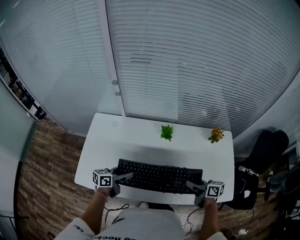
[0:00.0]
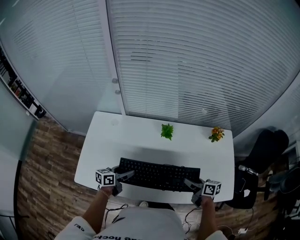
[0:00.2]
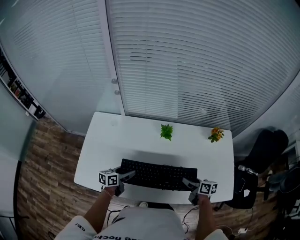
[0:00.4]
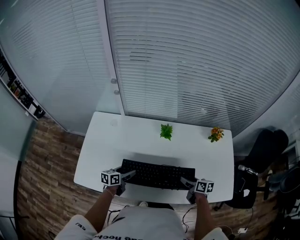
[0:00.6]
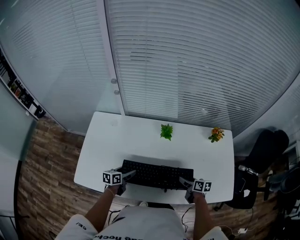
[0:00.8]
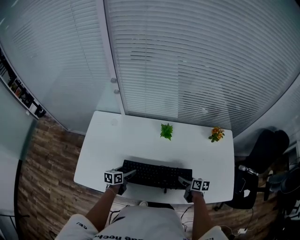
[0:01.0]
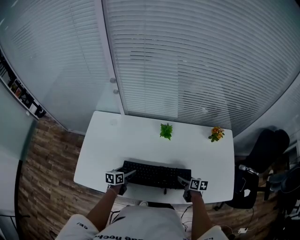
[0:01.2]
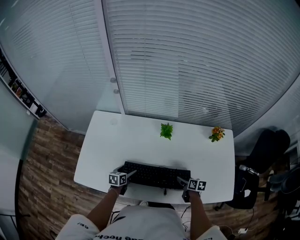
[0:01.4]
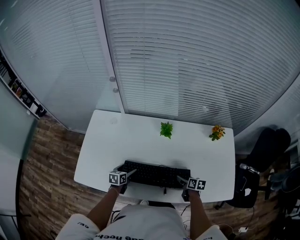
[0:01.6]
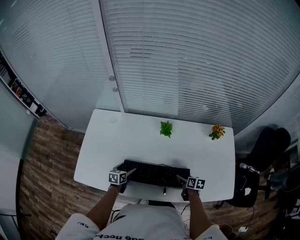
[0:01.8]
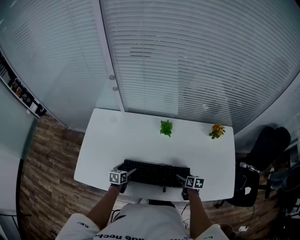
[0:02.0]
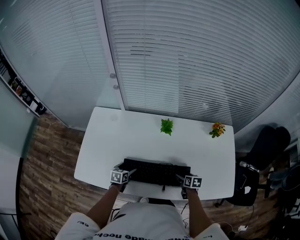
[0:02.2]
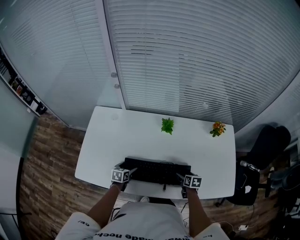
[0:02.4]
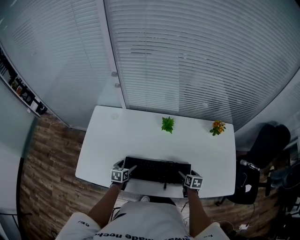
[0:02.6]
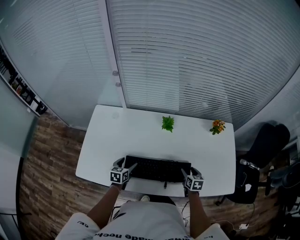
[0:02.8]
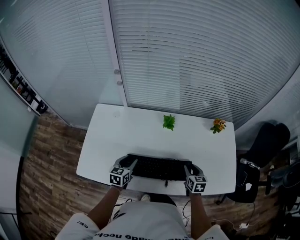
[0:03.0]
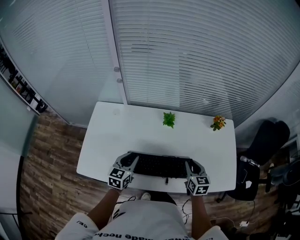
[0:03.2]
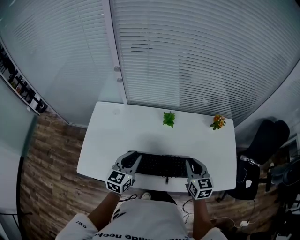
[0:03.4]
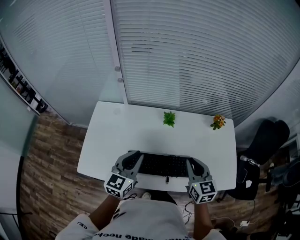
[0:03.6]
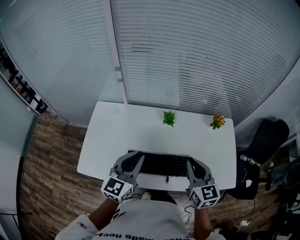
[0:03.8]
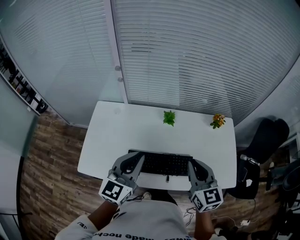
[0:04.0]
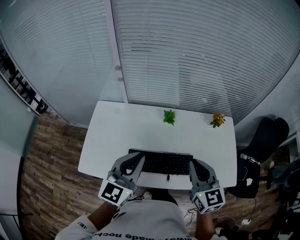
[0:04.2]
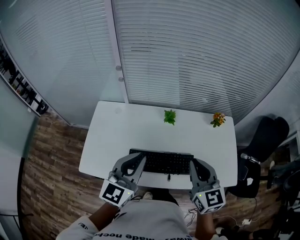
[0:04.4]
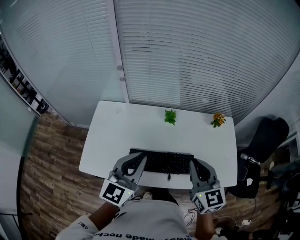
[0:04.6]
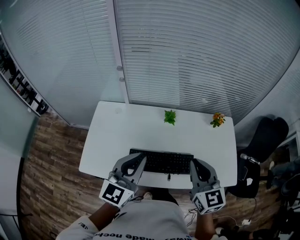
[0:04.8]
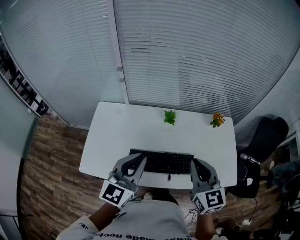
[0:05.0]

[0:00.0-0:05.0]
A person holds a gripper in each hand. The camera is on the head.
0:00.0 to 0:01.6: The two grippers go roughly 20 cm downward. The left gripper swivels approximately 30 degrees. Meanwhile the right gripper turns by about 30 degrees, and opens its fingers.
0:01.6 to 0:03.4: The grippers both shift upward by some 25 cm. The left gripper turns by approximately 30 degrees, and closes up. The right gripper rotates roughly 50 degrees, and closes its fingers.
0:03.4 to 0:05.0: Both grippers move upward and backward, roughly 15 cm.

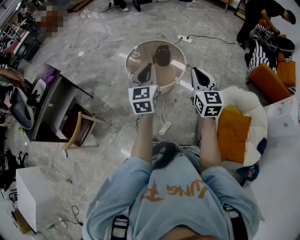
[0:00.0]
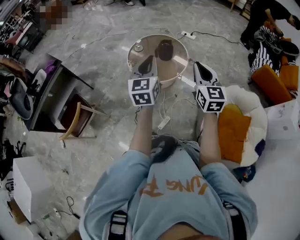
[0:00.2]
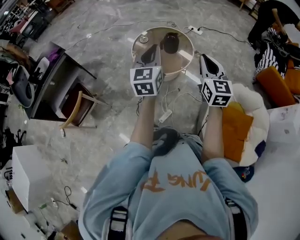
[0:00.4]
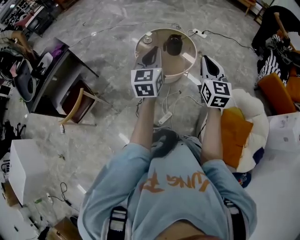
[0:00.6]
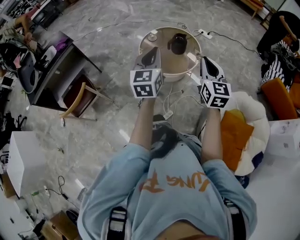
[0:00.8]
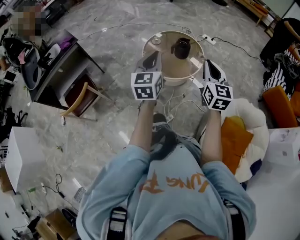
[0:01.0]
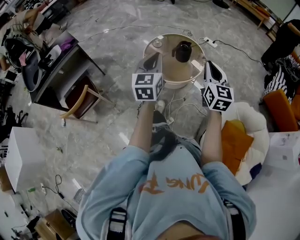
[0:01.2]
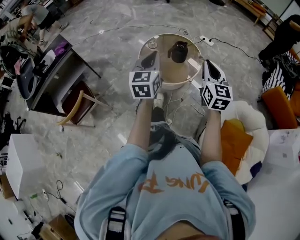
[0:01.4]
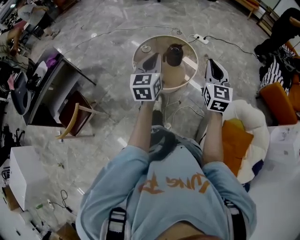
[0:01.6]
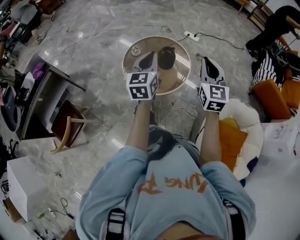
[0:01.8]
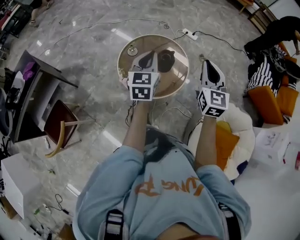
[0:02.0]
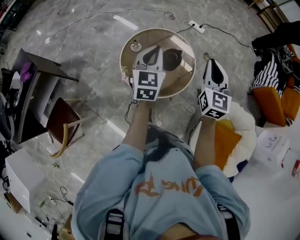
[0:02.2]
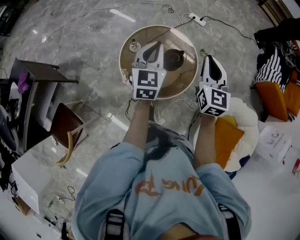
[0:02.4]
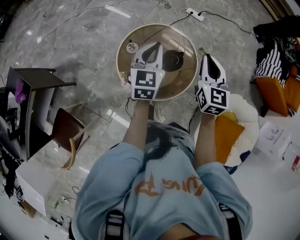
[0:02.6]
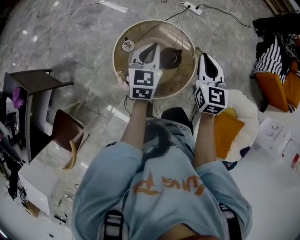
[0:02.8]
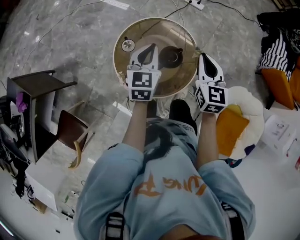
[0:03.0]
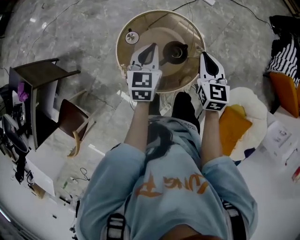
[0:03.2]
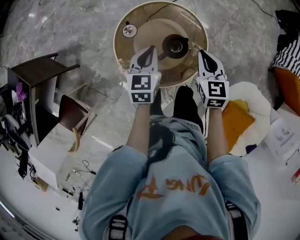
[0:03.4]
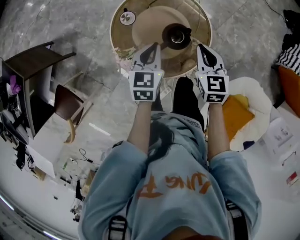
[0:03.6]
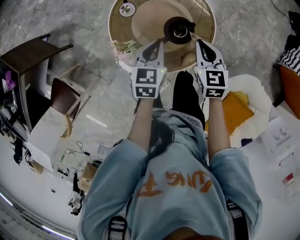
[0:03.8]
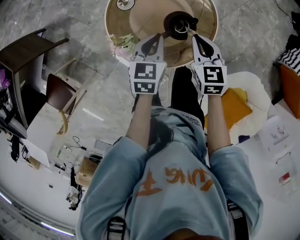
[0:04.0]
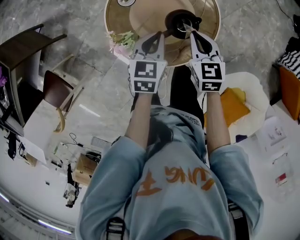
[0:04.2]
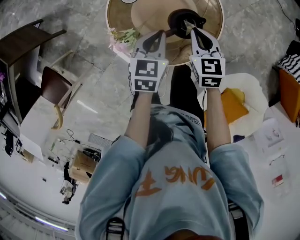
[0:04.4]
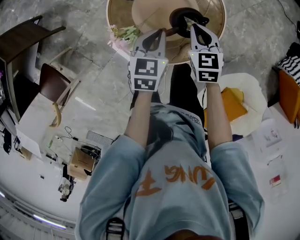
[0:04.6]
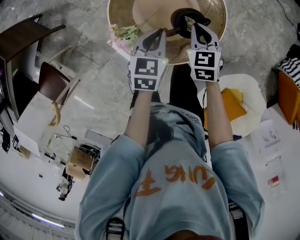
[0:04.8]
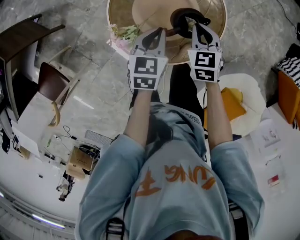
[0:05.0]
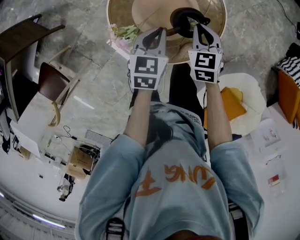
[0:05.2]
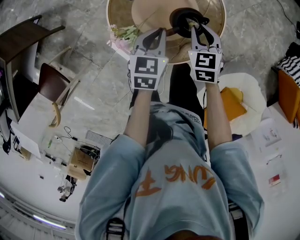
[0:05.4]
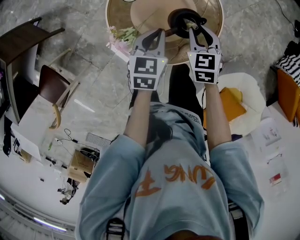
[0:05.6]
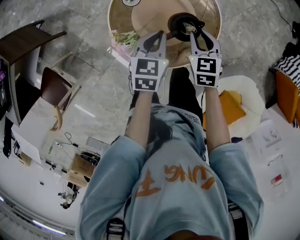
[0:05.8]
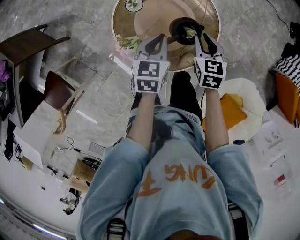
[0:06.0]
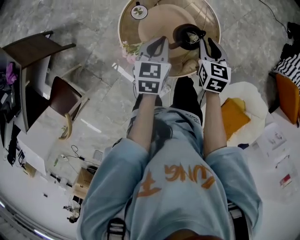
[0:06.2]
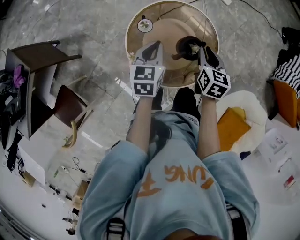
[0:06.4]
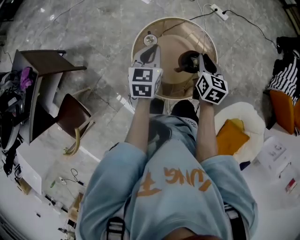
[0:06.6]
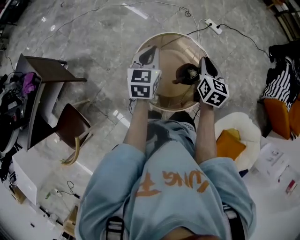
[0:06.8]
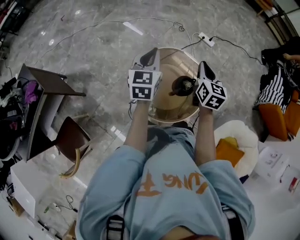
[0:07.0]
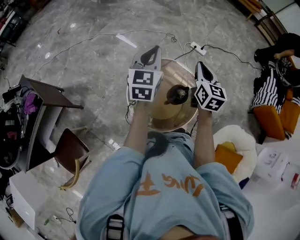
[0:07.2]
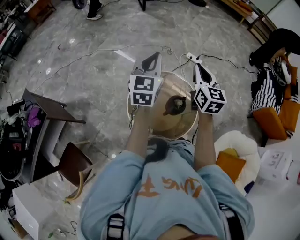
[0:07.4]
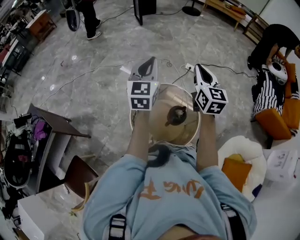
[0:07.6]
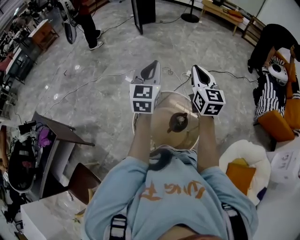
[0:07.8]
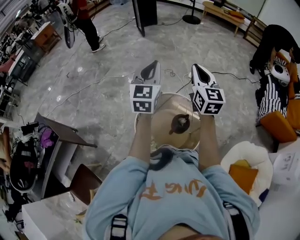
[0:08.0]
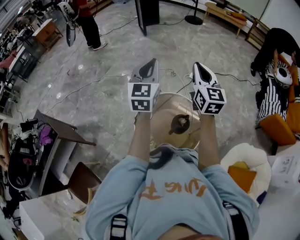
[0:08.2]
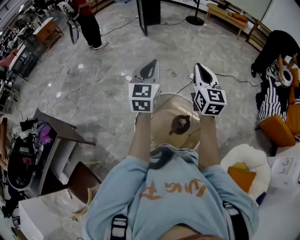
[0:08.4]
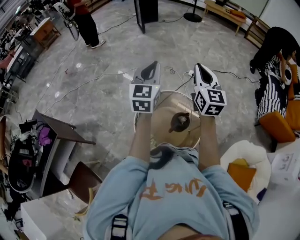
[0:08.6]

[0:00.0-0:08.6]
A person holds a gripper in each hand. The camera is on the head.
0:00.0 to 0:01.4: The grippers both shift forward by roughly 5 cm.
0:01.4 to 0:02.8: The two grippers go approximately 40 cm forward. The left gripper rotates approximately 20 degrees.
0:02.8 to 0:04.4: The grippers both shift downward by approximately 25 cm. The right gripper turns by some 30 degrees. Meanwhile the left gripper turns by roughly 30 degrees.
0:04.4 to 0:05.8: The right gripper opens up.
0:05.8 to 0:07.2: Both grippers move upward, about 30 cm. The left gripper points its fingers roughly 30 degrees further upward. Meanwhile the right gripper angles its fingers upward, by about 30 degrees, and closes its fingers.
0:07.2 to 0:08.6: The left gripper travels upward by approximately 10 cm. Meanwhile the right gripper heads upward, covering roughly 15 cm.

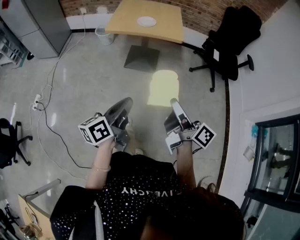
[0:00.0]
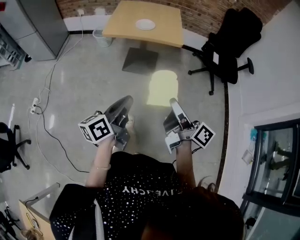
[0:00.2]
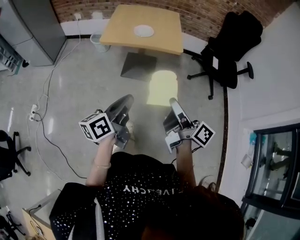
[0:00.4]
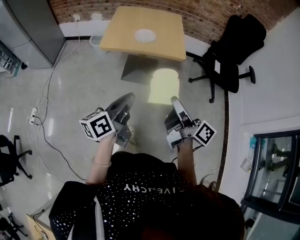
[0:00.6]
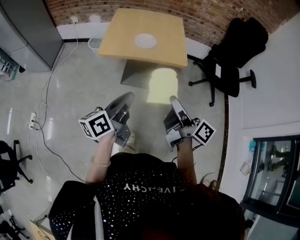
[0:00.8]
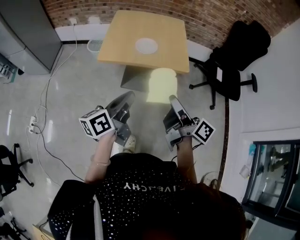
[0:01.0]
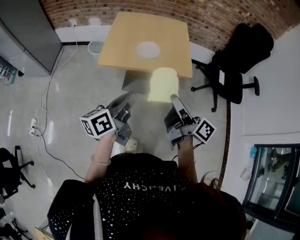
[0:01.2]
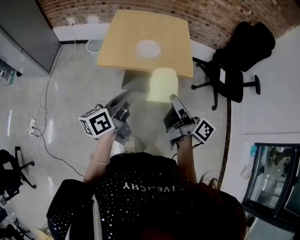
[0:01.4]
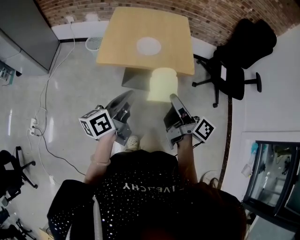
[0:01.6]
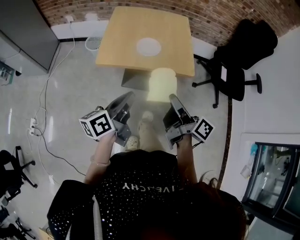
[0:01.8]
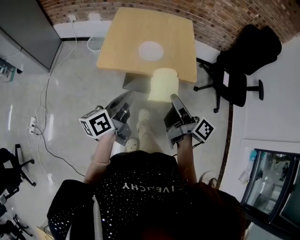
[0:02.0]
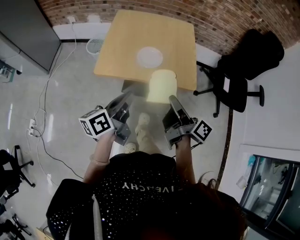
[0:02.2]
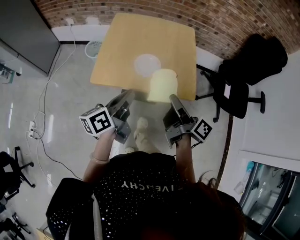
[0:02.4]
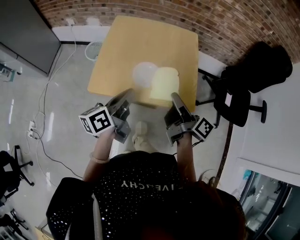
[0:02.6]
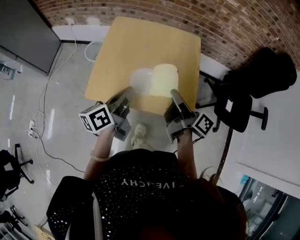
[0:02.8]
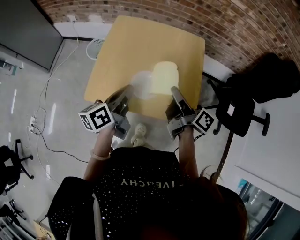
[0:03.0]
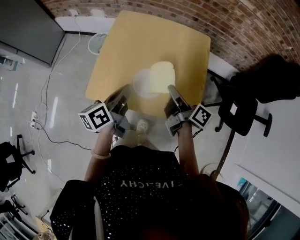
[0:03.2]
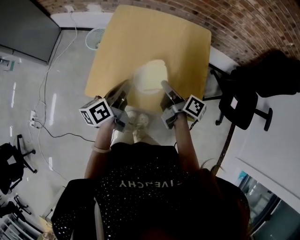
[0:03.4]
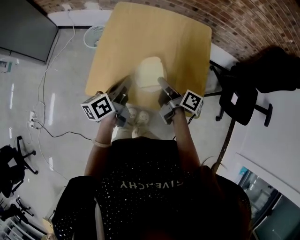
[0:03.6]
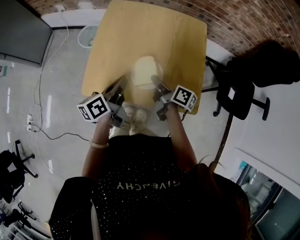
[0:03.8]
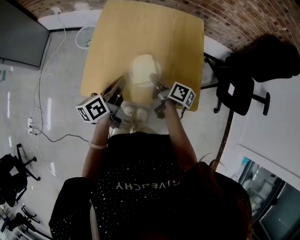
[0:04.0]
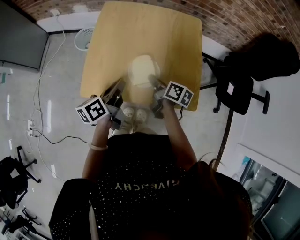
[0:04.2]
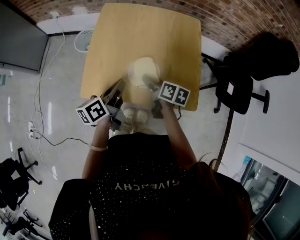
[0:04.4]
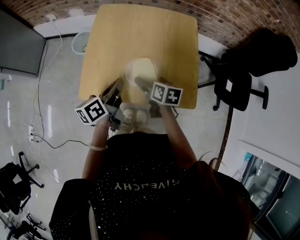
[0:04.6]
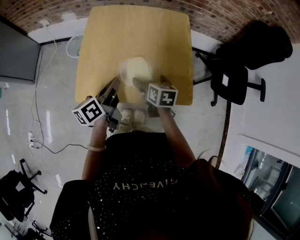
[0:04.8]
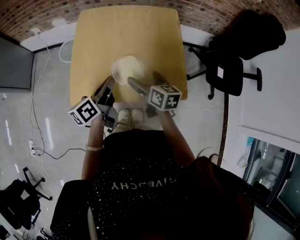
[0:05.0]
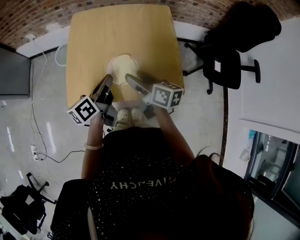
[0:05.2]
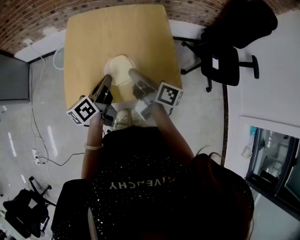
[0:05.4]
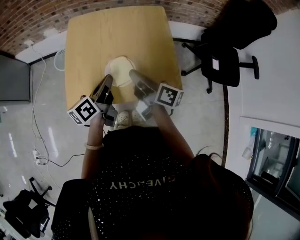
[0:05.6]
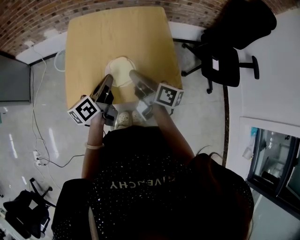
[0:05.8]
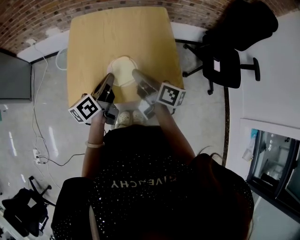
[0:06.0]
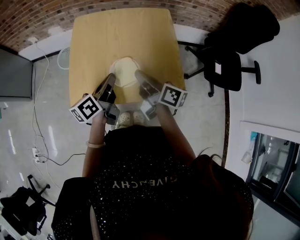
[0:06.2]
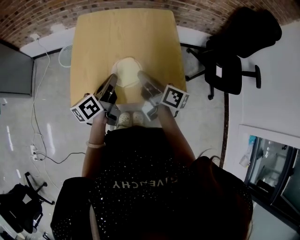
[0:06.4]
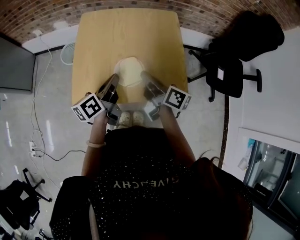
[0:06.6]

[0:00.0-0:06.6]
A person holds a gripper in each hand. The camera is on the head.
0:00.0 to 0:01.6: The grippers both shift forward by approximately 40 cm.
0:01.6 to 0:03.2: The two grippers go roughly 35 cm forward.
0:03.2 to 0:05.0: The right gripper travels downward by roughly 5 cm, rotates approximately 40 degrees, and opens its fingers.
0:05.0 to 0:06.6: The right gripper moves upward, about 5 cm, rotates some 30 degrees, and closes its fingers.

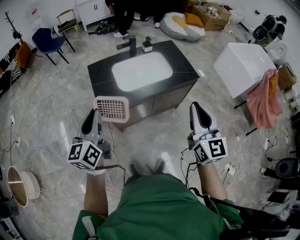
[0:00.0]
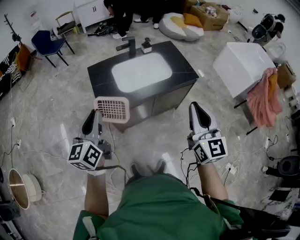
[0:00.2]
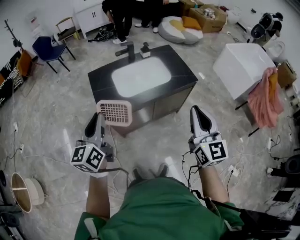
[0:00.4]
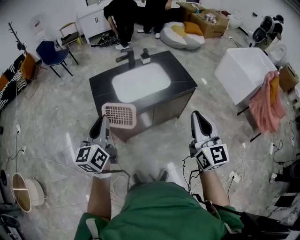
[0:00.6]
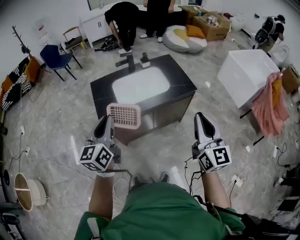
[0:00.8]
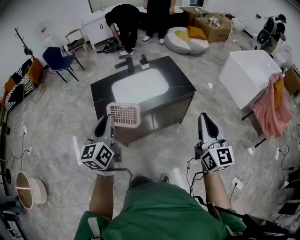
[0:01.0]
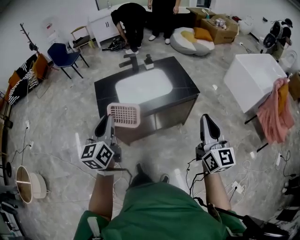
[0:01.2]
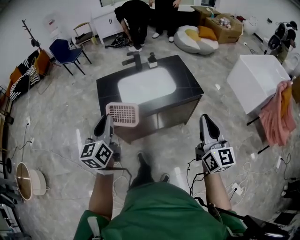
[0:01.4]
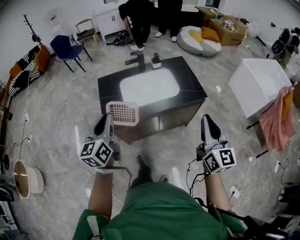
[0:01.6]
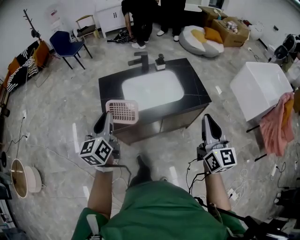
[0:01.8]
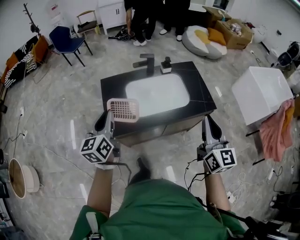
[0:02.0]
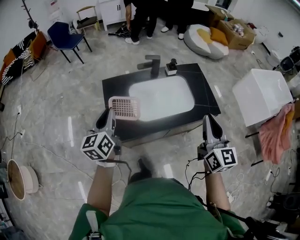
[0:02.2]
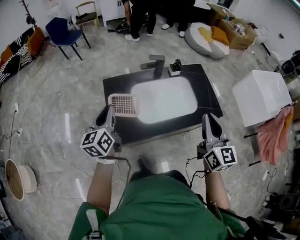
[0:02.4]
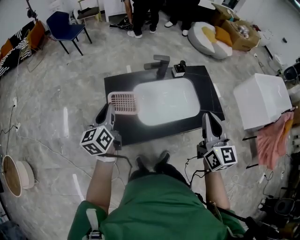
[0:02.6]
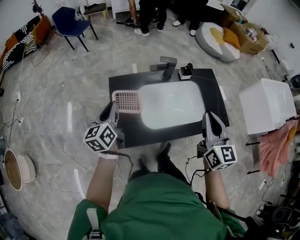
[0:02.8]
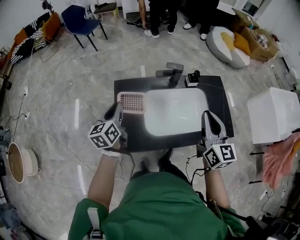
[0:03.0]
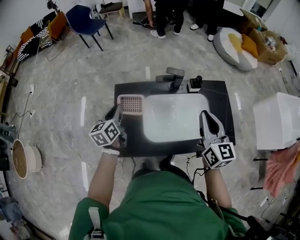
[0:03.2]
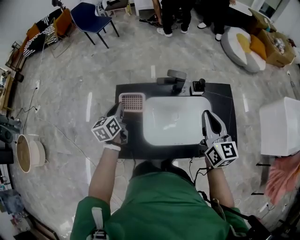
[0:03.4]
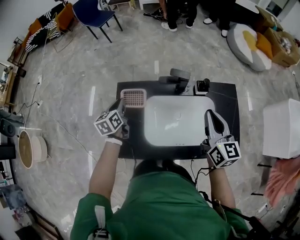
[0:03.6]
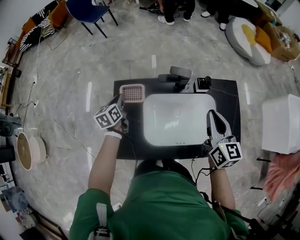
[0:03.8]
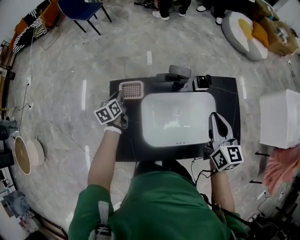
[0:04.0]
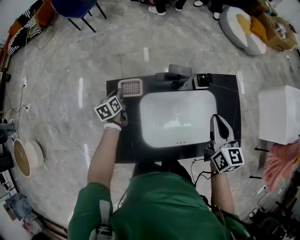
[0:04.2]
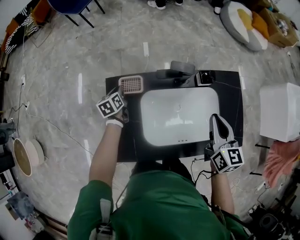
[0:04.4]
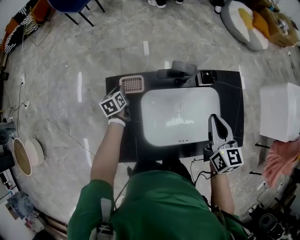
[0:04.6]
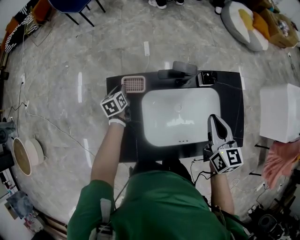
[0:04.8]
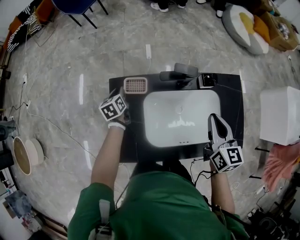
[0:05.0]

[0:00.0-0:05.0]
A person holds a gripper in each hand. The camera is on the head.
0:00.0 to 0:01.6: The two grippers go roughly 10 cm to the right and forward.
0:01.6 to 0:03.4: Both grippers are carried forward, some 50 cm. The left gripper rotates roughly 30 degrees, while the right gripper rotates roughly 20 degrees.
0:03.4 to 0:05.0: The left gripper moves downward and forward, about 25 cm, while the right gripper goes about 10 cm downward and forward.
